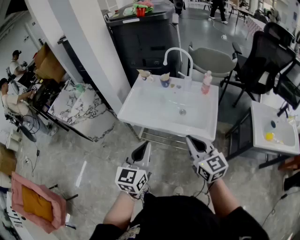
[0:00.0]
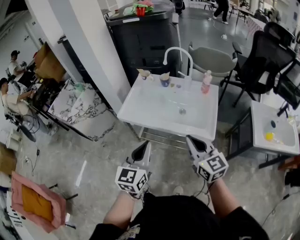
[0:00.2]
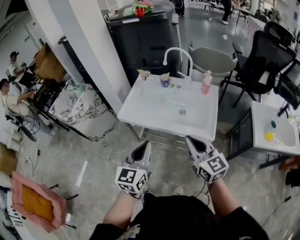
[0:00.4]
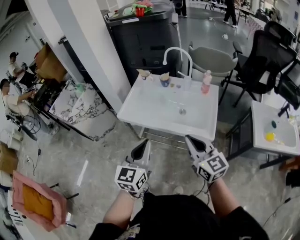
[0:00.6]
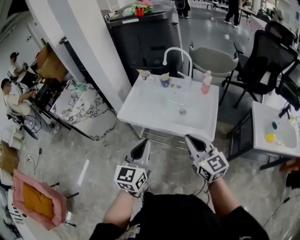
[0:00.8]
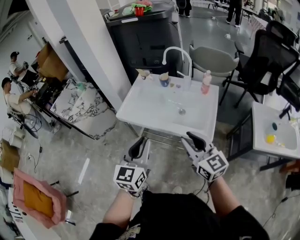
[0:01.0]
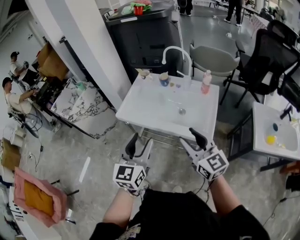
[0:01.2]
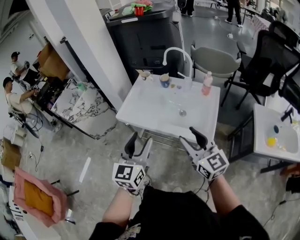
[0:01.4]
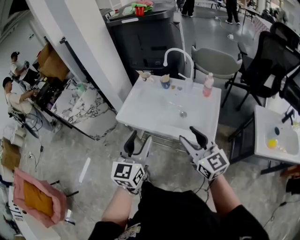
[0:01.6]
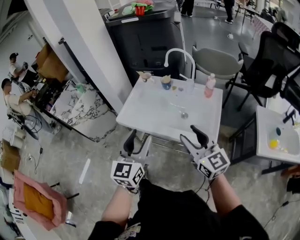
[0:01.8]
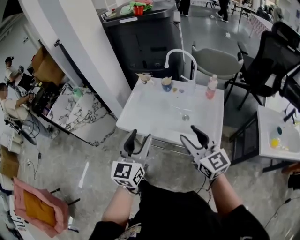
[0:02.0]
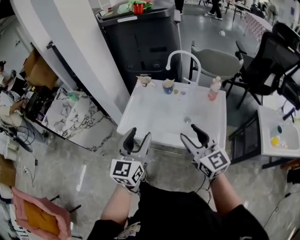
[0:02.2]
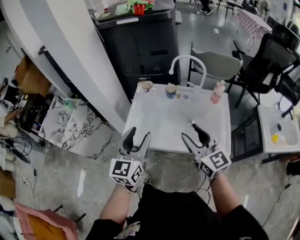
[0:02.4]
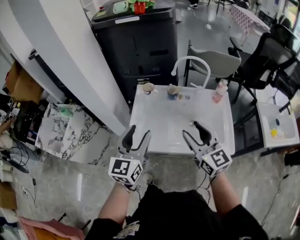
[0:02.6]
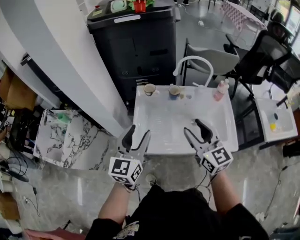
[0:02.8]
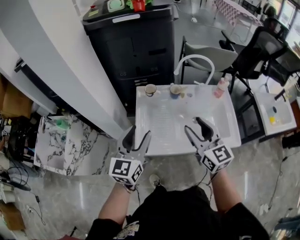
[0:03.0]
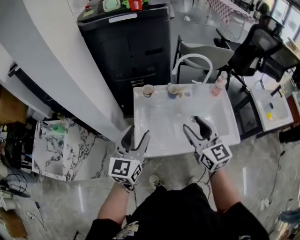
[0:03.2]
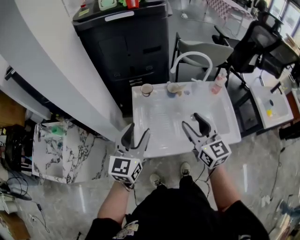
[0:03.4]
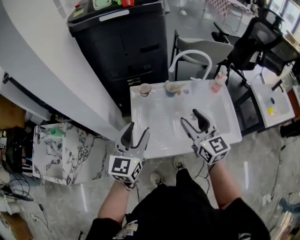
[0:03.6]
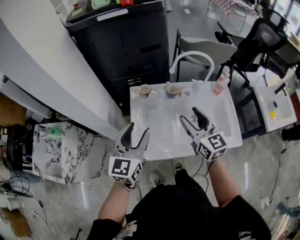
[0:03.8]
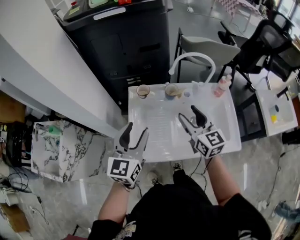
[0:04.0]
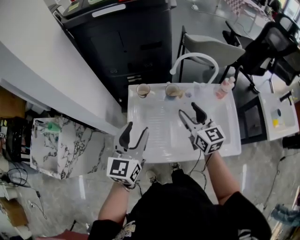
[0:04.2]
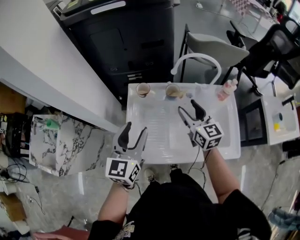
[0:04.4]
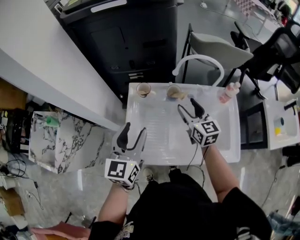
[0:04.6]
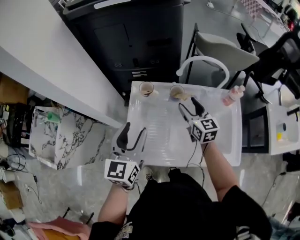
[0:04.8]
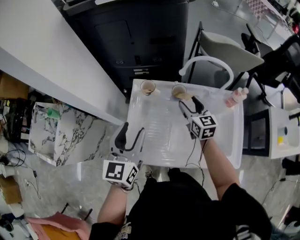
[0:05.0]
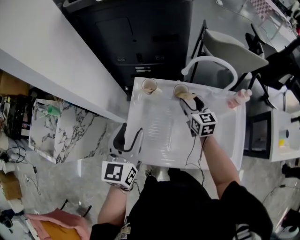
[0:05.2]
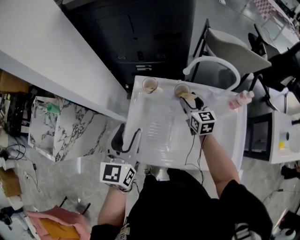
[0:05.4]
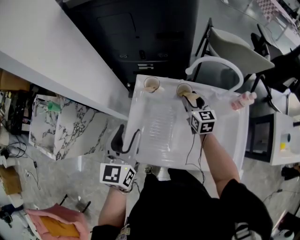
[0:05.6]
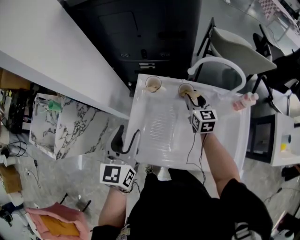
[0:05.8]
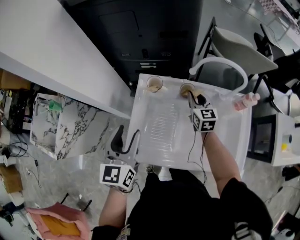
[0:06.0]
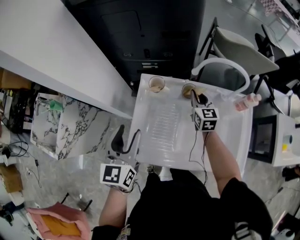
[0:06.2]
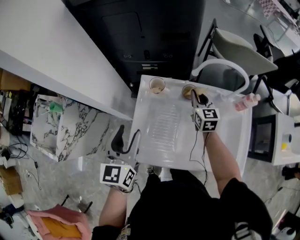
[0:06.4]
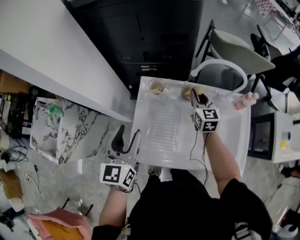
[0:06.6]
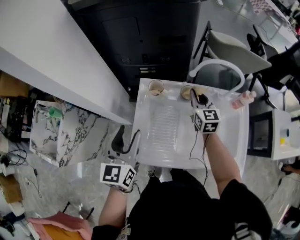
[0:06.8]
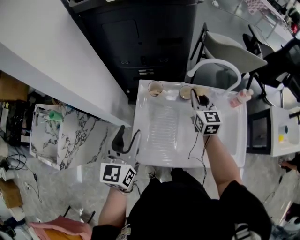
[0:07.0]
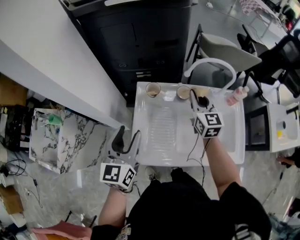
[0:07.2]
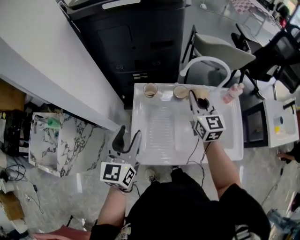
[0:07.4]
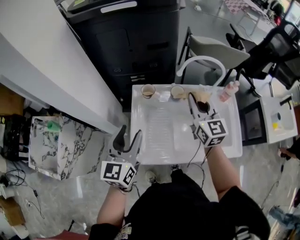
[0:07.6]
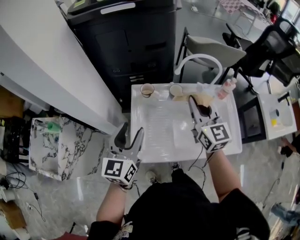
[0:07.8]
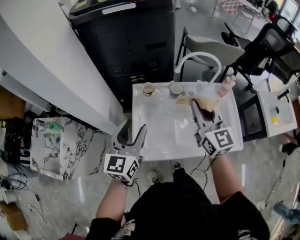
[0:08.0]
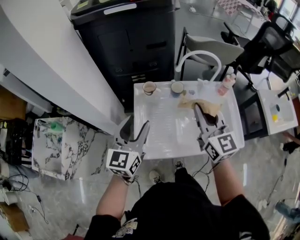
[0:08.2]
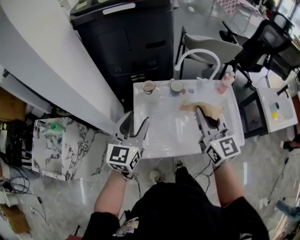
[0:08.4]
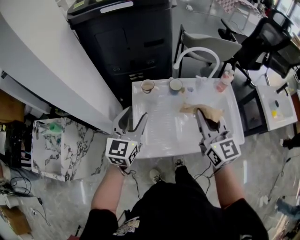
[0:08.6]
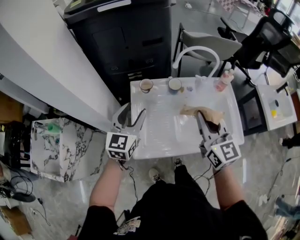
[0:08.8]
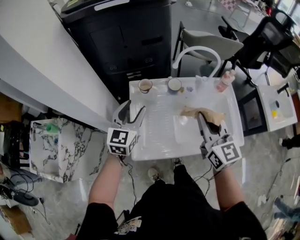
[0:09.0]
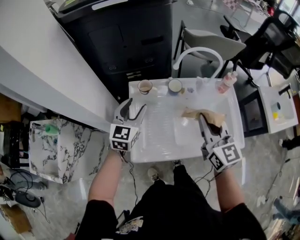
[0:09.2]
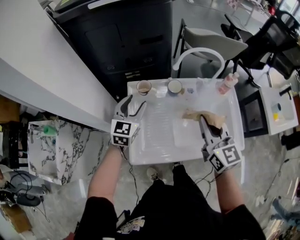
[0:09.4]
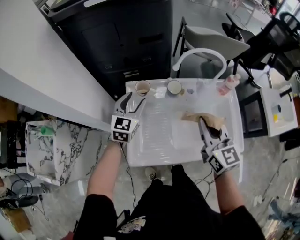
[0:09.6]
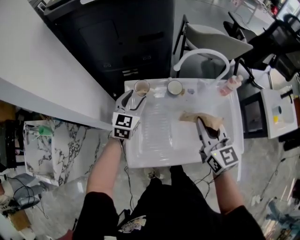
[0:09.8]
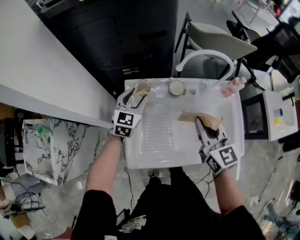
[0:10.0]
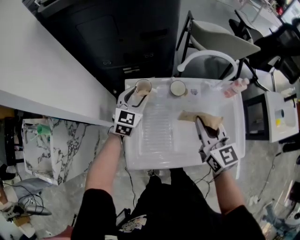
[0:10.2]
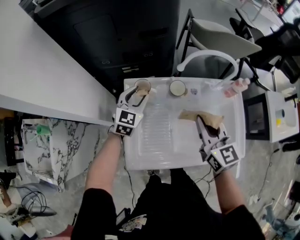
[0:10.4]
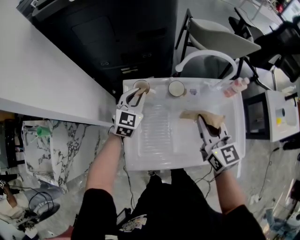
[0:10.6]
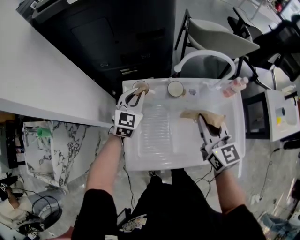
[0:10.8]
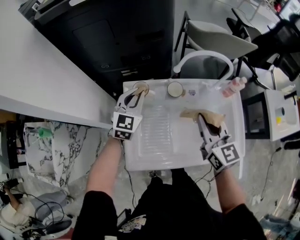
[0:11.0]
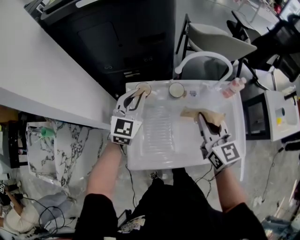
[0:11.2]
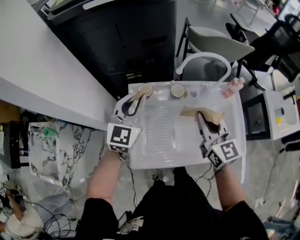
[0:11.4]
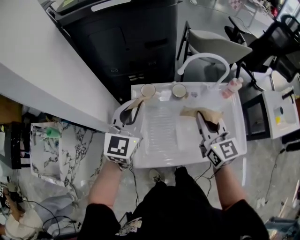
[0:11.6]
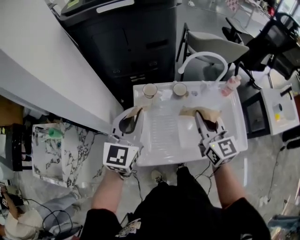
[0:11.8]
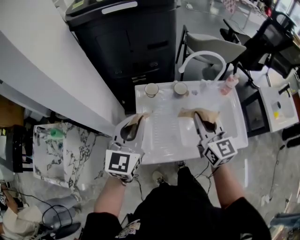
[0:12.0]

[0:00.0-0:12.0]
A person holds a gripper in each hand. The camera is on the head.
0:00.0 to 0:01.6: The right gripper ends up approximately 5 cm from where it was, and opens, while the left gripper heads forward, covering roughly 5 cm, and opens.
0:01.6 to 0:03.0: The left gripper changes place by about 40 cm, and rotates some 20 degrees; the right gripper shifts by some 30 cm, and turns by some 30 degrees.
0:03.0 to 0:04.4: The left gripper shifts some 10 cm forward; the right gripper moves forward and downward, approximately 20 cm.
0:04.4 to 0:06.0: The left gripper shifts by some 5 cm; the right gripper heads forward and downward, covering approximately 20 cm, and closes.
0:06.0 to 0:07.6: The right gripper moves upward and backward, approximately 20 cm.
0:07.6 to 0:09.0: The right gripper goes roughly 10 cm backward. Meanwhile the left gripper travels forward by roughly 5 cm.
0:09.0 to 0:10.4: The right gripper goes some 10 cm forward and downward. Meanwhile the left gripper shifts some 20 cm forward and downward.
0:10.4 to 0:12.0: The right gripper is displaced backward and upward by some 10 cm. Meanwhile the left gripper is displaced backward and upward by approximately 25 cm, and closes up.

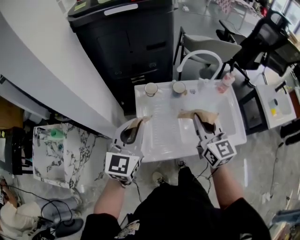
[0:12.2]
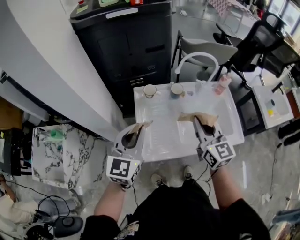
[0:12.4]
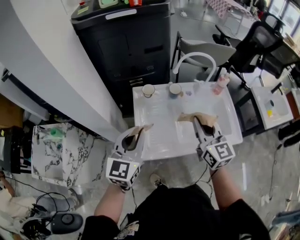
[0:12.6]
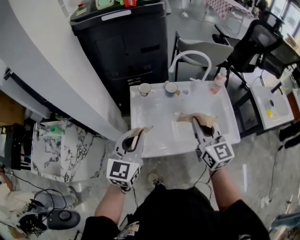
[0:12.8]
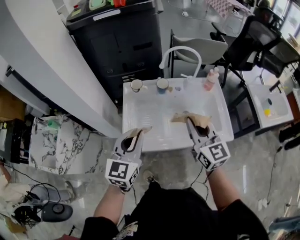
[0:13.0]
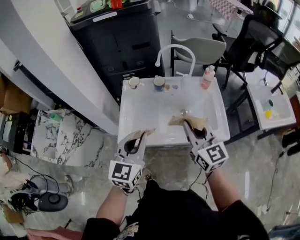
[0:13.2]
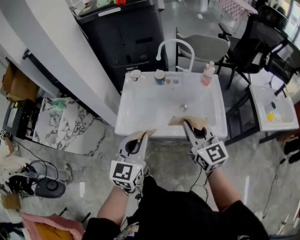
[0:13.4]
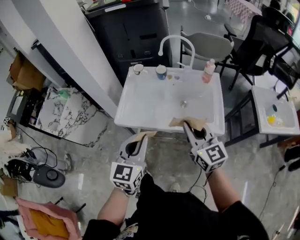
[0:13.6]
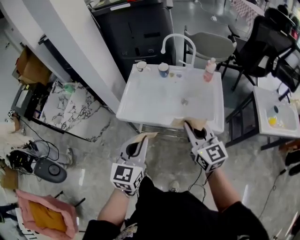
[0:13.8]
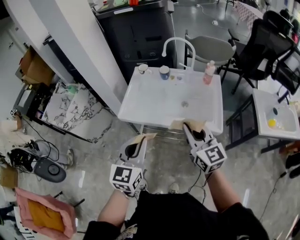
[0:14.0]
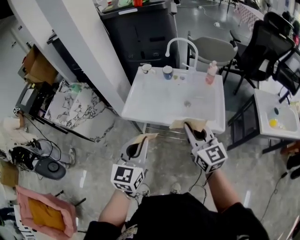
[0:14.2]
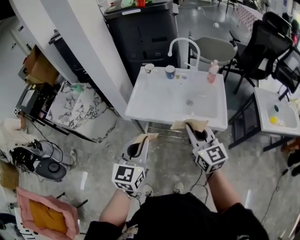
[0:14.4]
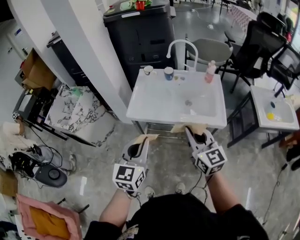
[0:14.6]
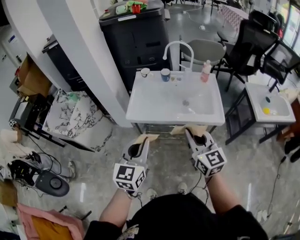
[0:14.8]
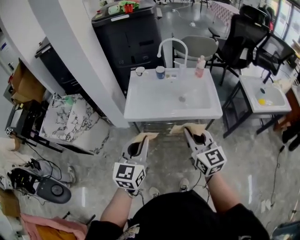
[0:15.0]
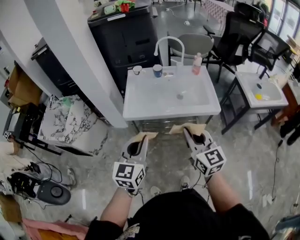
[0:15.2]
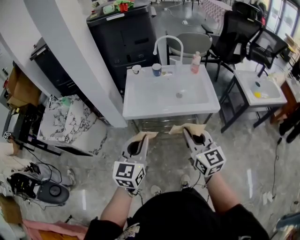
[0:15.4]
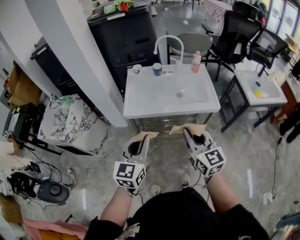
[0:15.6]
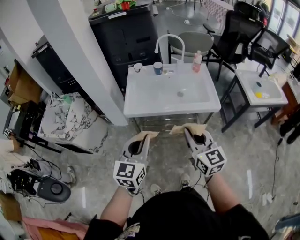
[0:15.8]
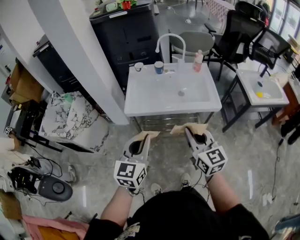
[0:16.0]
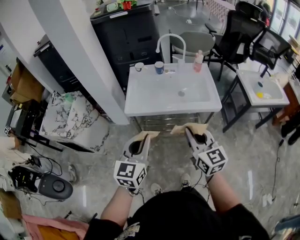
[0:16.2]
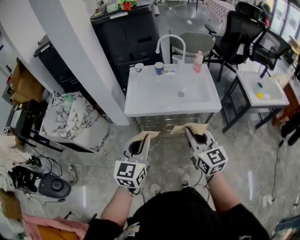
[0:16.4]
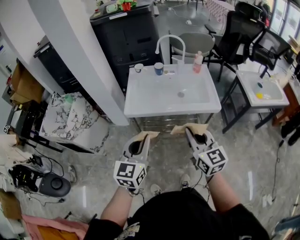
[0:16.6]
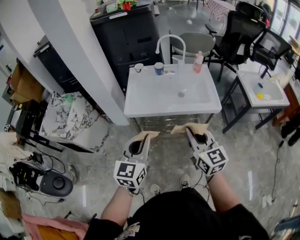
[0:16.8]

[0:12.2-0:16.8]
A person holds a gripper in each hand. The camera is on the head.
0:12.2 to 0:13.8: Both grippers move backward and to the right, some 35 cm. The right gripper changes its angle by some 20 degrees.
0:13.8 to 0:15.2: The left gripper is displaced to the left and backward by some 15 cm; the right gripper goes about 20 cm backward and to the left.
0:15.2 to 0:16.8: The grippers move only a little.

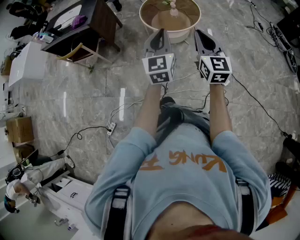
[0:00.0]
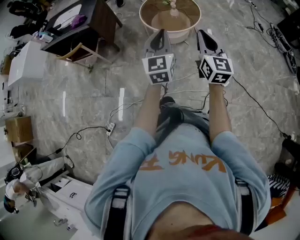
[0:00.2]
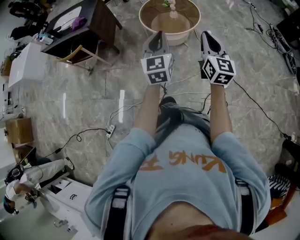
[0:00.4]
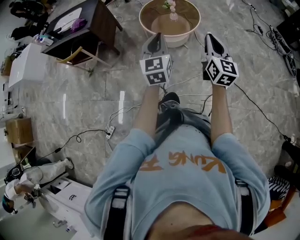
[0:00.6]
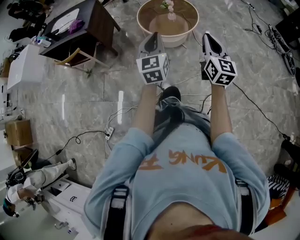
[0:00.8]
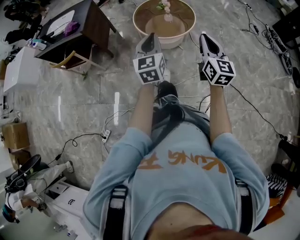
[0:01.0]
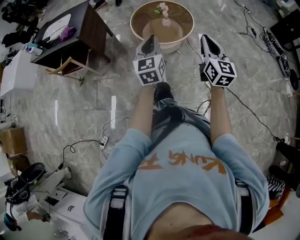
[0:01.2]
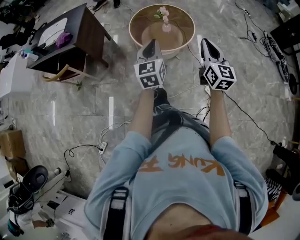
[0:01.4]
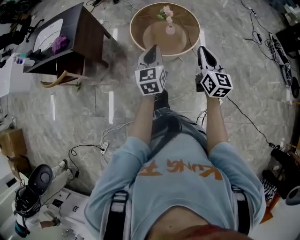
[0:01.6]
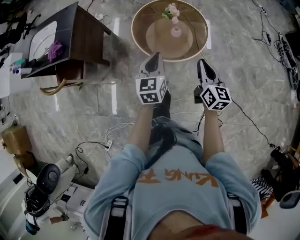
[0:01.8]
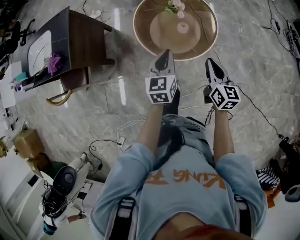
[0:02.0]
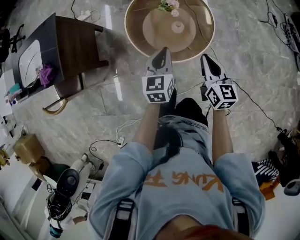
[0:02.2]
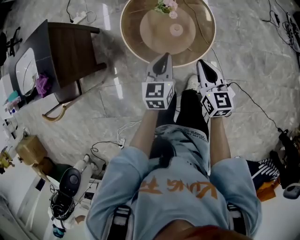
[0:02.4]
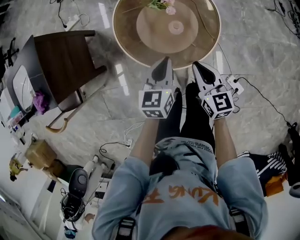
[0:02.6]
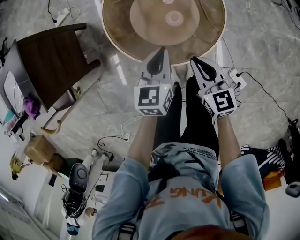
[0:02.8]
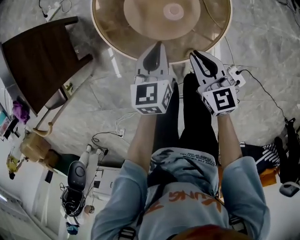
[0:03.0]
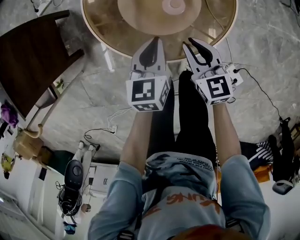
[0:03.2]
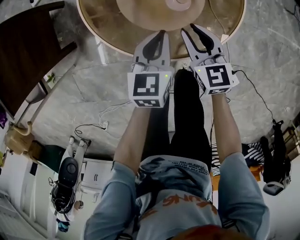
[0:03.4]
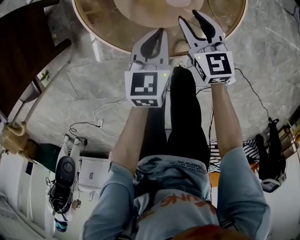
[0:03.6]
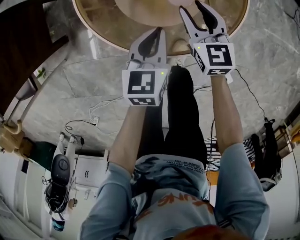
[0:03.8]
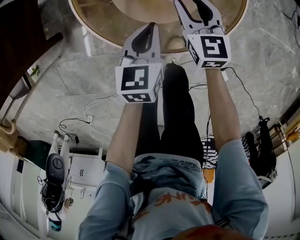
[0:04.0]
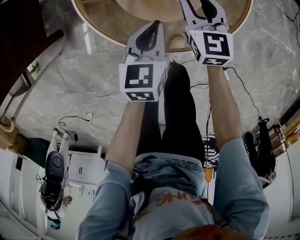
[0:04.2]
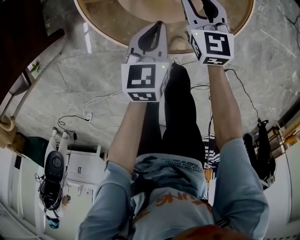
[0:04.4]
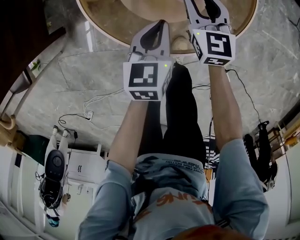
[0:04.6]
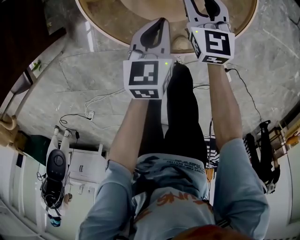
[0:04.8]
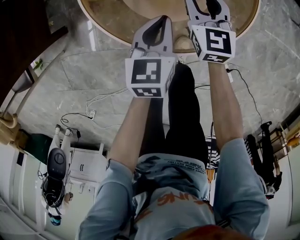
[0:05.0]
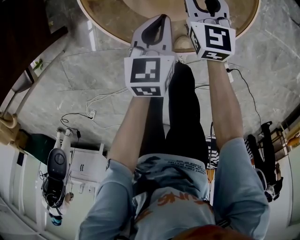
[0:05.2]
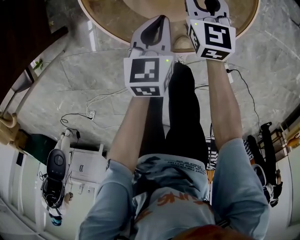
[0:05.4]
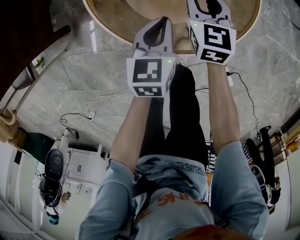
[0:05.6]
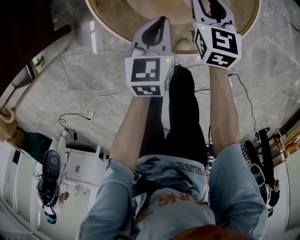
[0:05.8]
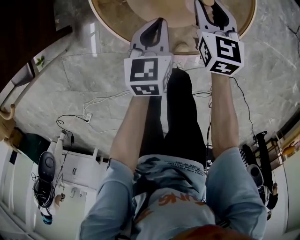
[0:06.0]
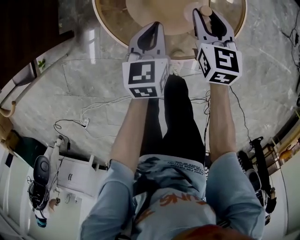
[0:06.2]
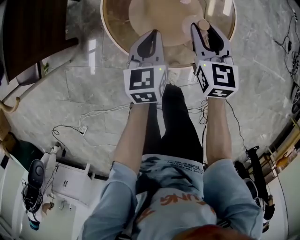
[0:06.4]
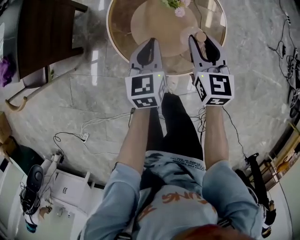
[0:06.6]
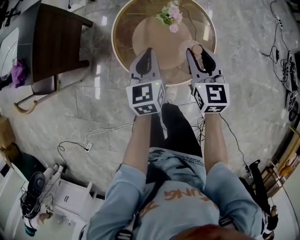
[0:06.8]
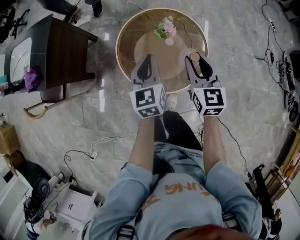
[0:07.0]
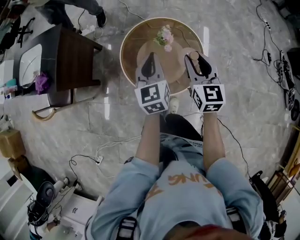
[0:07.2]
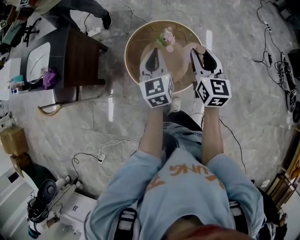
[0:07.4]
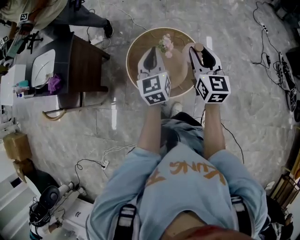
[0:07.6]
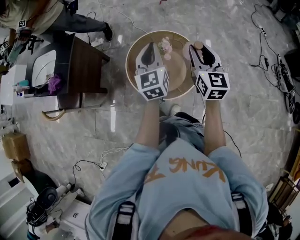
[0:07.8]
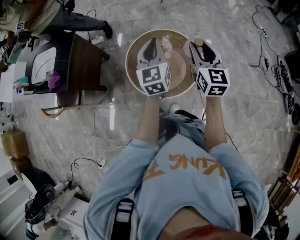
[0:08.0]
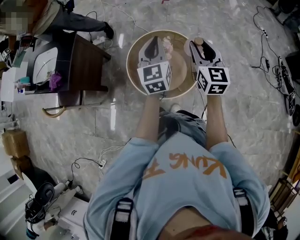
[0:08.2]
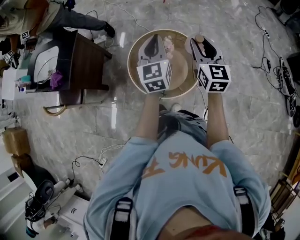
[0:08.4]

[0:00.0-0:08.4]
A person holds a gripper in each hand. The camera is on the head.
0:00.0 to 0:01.4: Both grippers move forward, about 20 cm.
0:01.4 to 0:02.8: The left gripper heads forward and downward, covering about 35 cm, and turns by about 30 degrees, while the right gripper travels downward and forward by roughly 35 cm, and changes its angle by approximately 30 degrees.
0:02.8 to 0:04.2: The left gripper shifts some 30 cm downward and forward. Meanwhile the right gripper shifts some 35 cm forward and downward, and opens its fingers.
0:04.2 to 0:05.6: There are only small adjustments of the grippers.
0:05.6 to 0:07.0: Both grippers move upward, roughly 30 cm. The left gripper swivels approximately 30 degrees.
0:07.0 to 0:08.4: The grippers both shift upward by about 20 cm.
